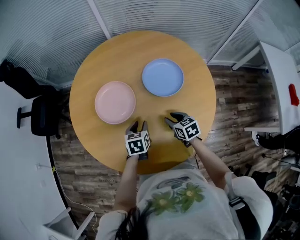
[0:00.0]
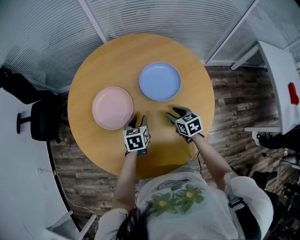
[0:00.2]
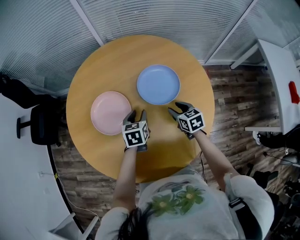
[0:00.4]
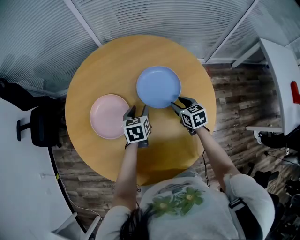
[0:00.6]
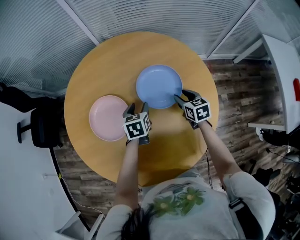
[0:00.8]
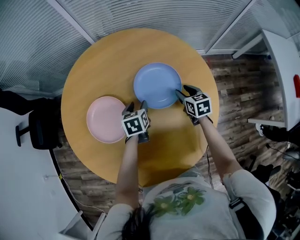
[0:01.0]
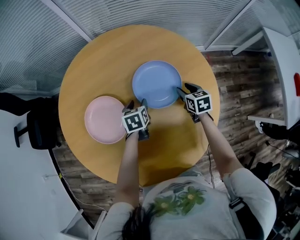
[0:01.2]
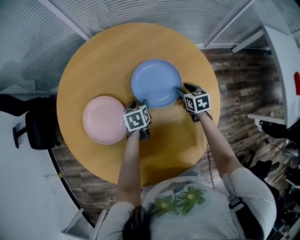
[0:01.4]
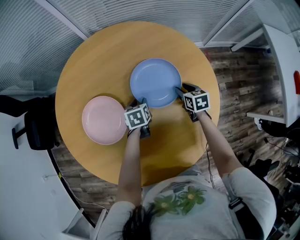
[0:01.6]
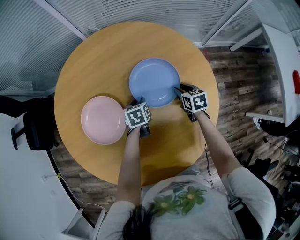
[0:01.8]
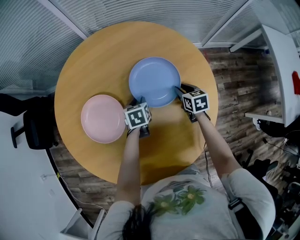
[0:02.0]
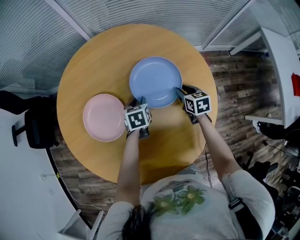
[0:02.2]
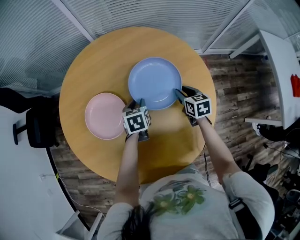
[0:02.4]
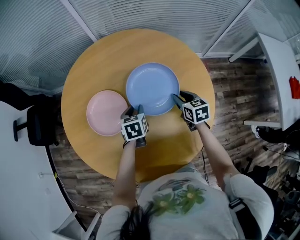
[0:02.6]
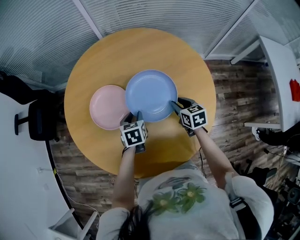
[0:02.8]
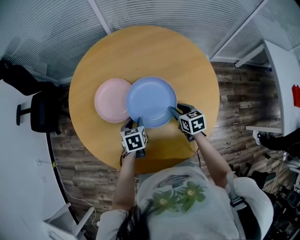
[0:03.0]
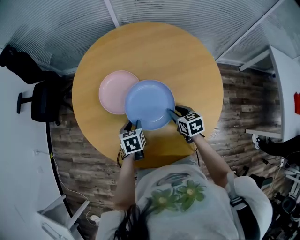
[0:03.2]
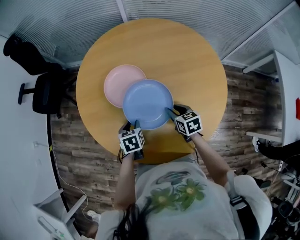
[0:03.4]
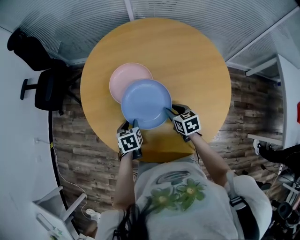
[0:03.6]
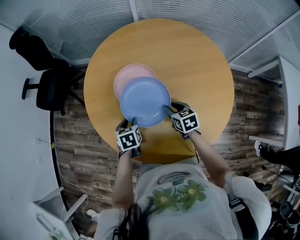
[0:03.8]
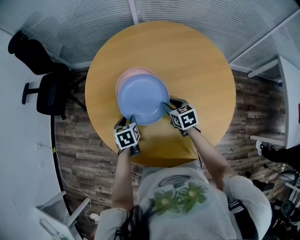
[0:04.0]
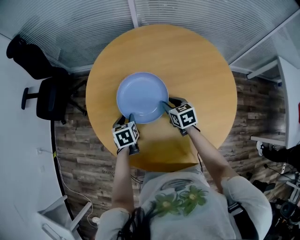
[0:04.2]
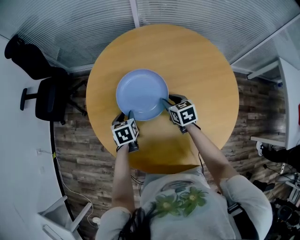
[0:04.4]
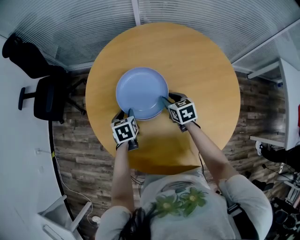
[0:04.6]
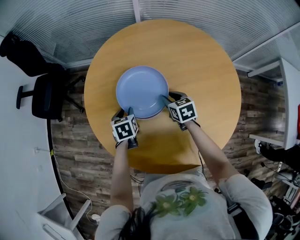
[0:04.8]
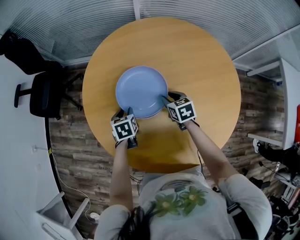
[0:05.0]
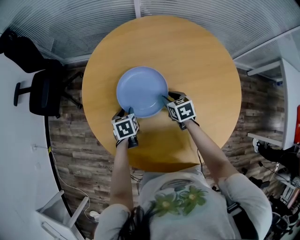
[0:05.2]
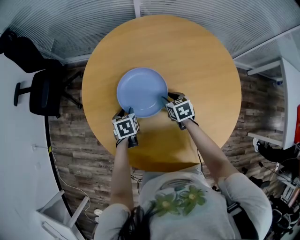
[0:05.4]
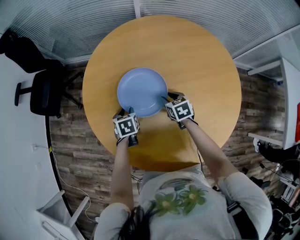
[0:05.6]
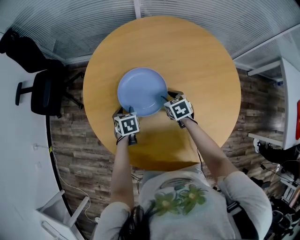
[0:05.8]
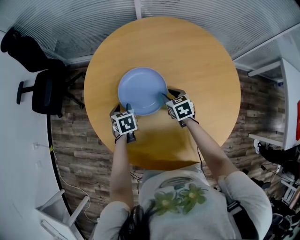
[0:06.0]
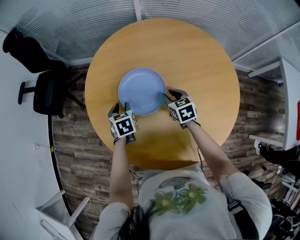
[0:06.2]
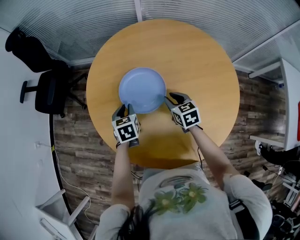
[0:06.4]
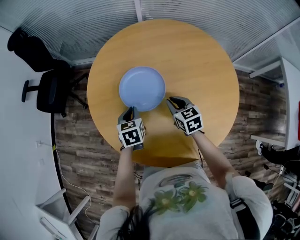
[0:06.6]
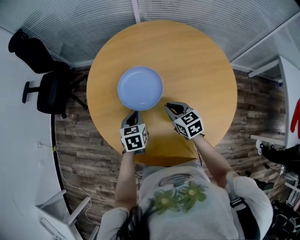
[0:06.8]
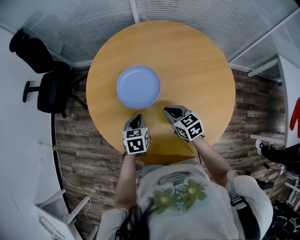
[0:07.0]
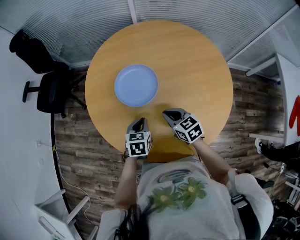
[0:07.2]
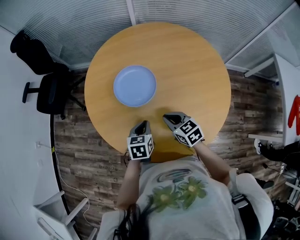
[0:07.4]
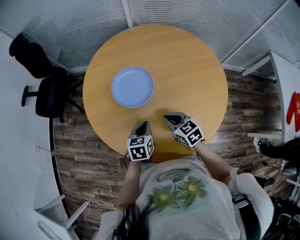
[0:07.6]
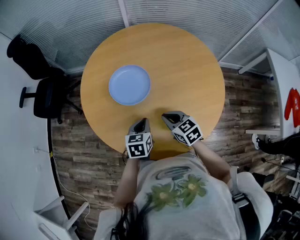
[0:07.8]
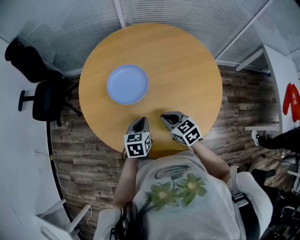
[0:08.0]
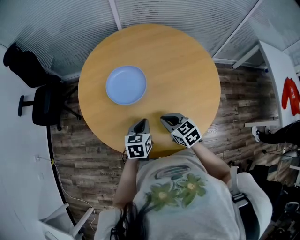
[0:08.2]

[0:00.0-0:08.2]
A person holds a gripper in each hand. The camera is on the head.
0:00.0 to 0:01.6: The left gripper shifts roughly 25 cm forward, downward and to the right. Meanwhile the right gripper travels forward, to the right and downward by approximately 30 cm.
0:01.6 to 0:03.2: The two grippers go about 30 cm backward, to the left and upward.
0:03.2 to 0:05.0: Both grippers travel together forward and to the left, approximately 20 cm.
0:05.0 to 0:06.6: The right gripper travels backward and upward by approximately 10 cm; the left gripper goes some 10 cm upward and backward, and closes its fingers.
0:06.6 to 0:08.2: The two grippers go approximately 20 cm backward. The left gripper swivels about 20 degrees.

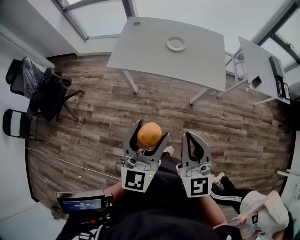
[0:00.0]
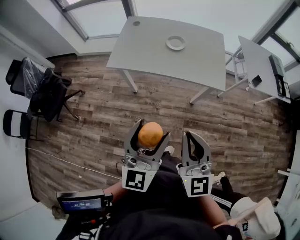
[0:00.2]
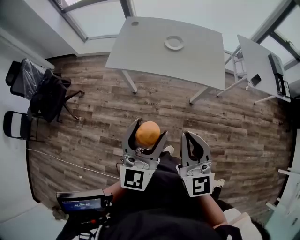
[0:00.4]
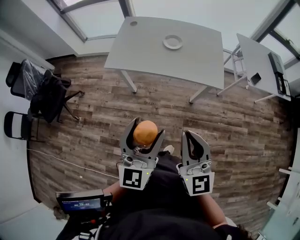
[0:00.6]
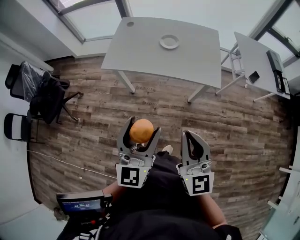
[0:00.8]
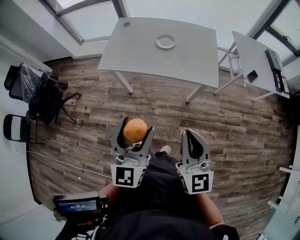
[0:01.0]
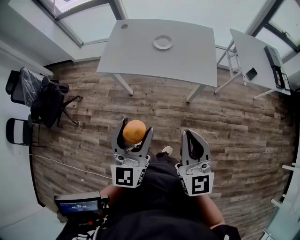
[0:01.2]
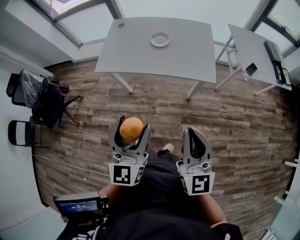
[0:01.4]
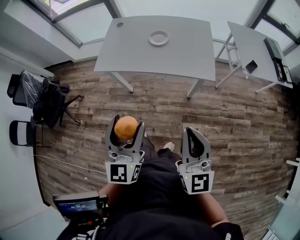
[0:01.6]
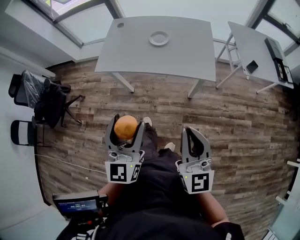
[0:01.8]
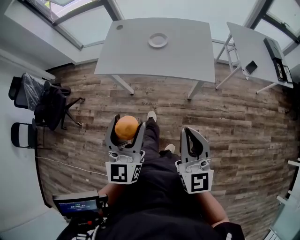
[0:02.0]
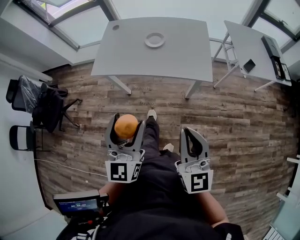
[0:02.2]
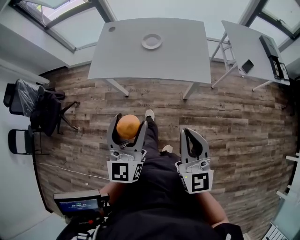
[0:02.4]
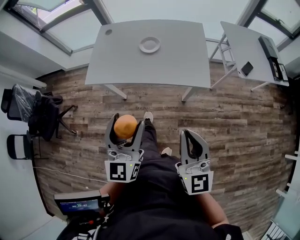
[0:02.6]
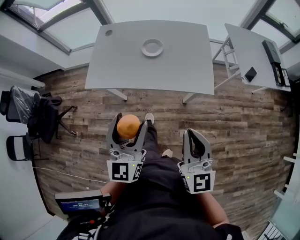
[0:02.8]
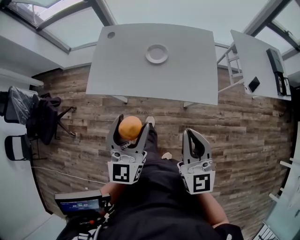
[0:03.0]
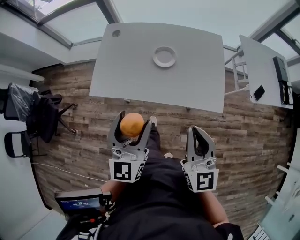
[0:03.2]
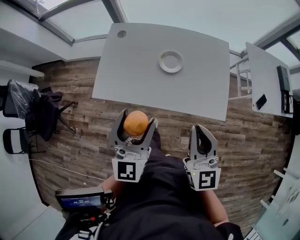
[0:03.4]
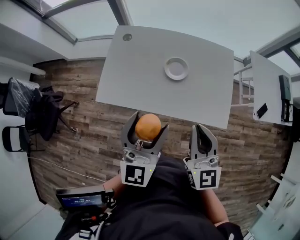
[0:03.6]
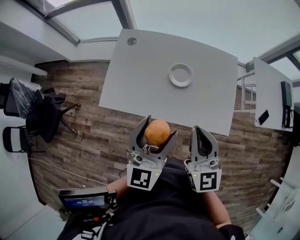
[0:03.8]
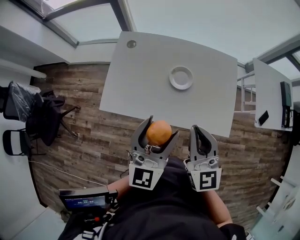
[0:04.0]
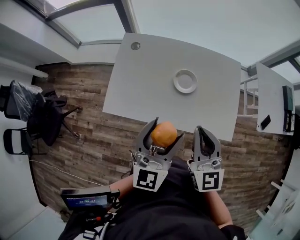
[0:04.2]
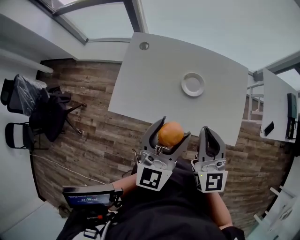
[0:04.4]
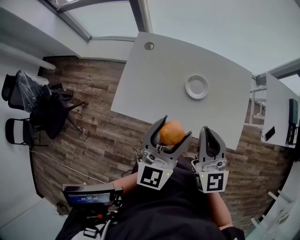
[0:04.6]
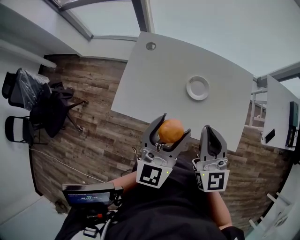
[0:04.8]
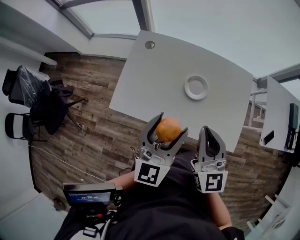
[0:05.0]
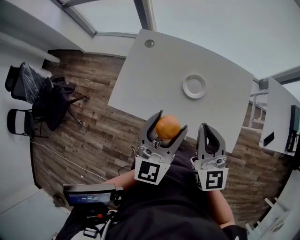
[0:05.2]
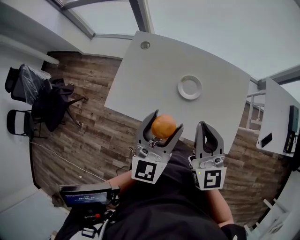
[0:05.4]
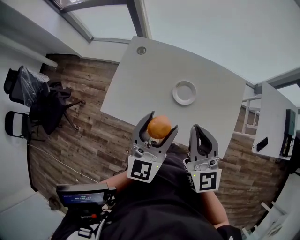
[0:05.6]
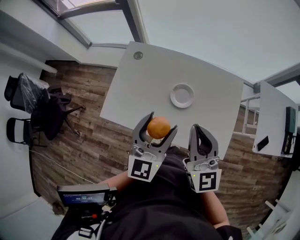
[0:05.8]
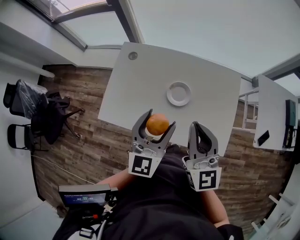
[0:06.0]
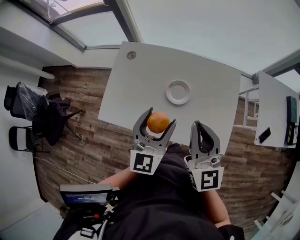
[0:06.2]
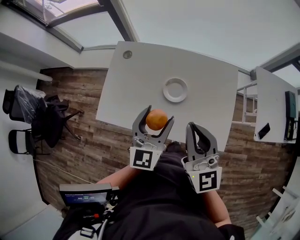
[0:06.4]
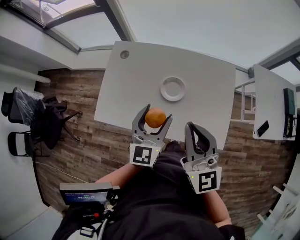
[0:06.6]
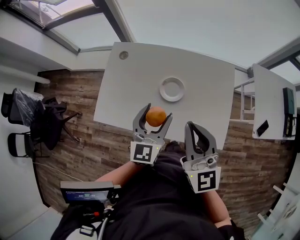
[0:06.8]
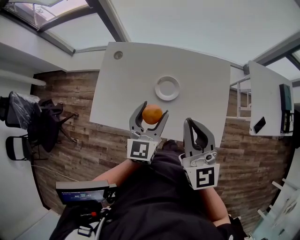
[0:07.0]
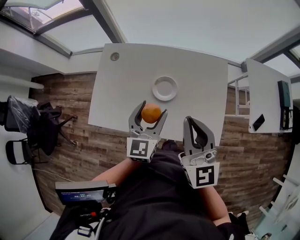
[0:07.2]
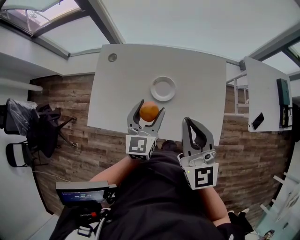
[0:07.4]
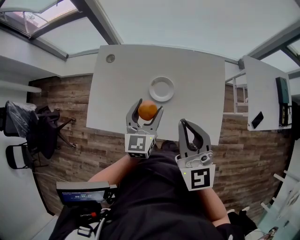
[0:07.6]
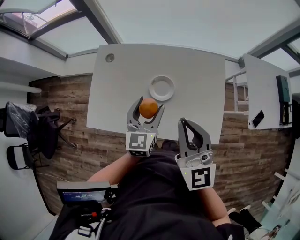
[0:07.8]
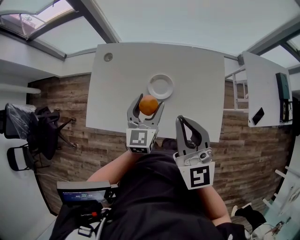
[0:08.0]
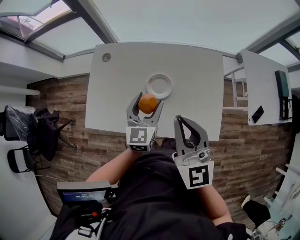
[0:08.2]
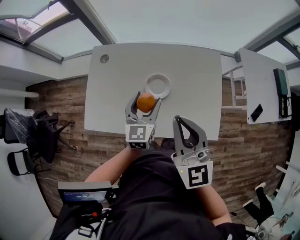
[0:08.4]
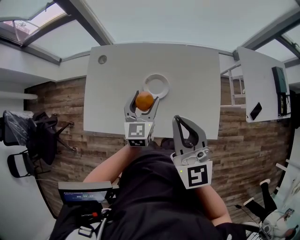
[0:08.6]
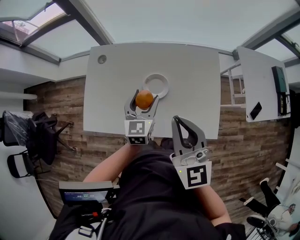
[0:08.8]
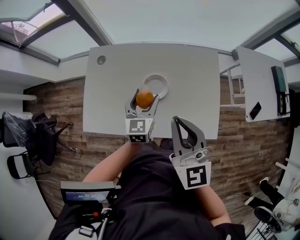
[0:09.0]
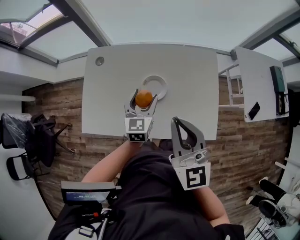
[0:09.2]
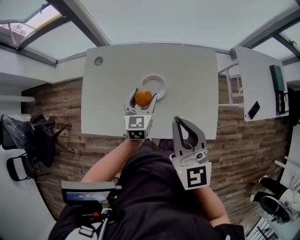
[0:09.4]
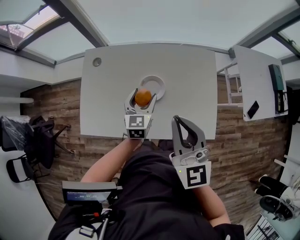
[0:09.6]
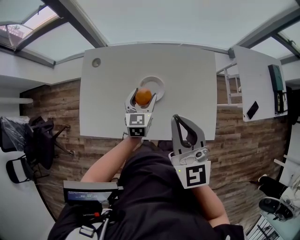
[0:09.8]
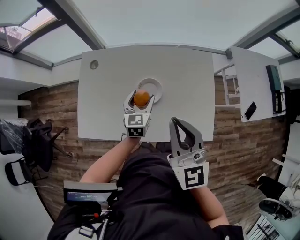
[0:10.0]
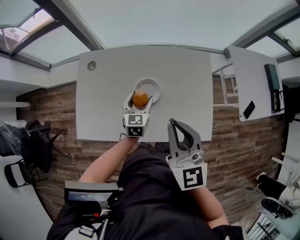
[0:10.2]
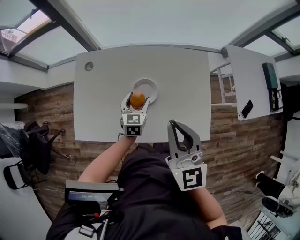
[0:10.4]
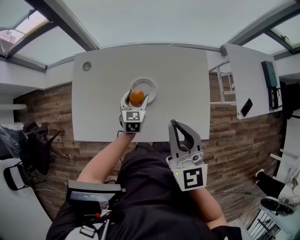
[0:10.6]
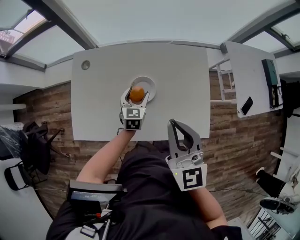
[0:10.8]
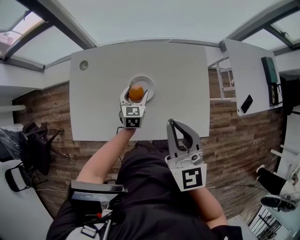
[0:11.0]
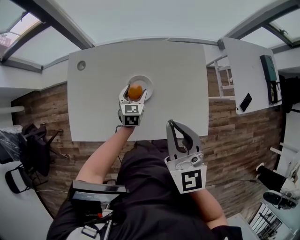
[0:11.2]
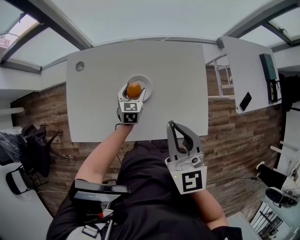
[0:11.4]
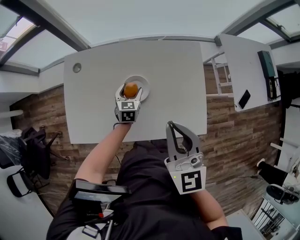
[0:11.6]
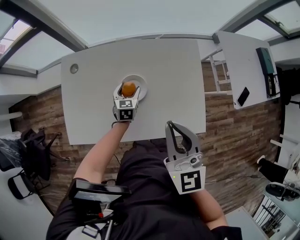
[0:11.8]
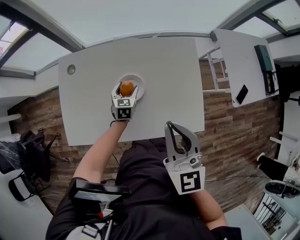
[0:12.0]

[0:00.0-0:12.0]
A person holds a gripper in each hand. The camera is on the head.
0:00.0 to 0:01.6: The right gripper shifts approximately 10 cm to the right.
0:01.6 to 0:03.0: Both grippers move forward, roughly 20 cm.
0:03.0 to 0:04.4: The left gripper travels forward by approximately 15 cm, while the right gripper goes roughly 25 cm forward and to the left.
0:04.4 to 0:06.0: Both grippers move forward and to the right, some 10 cm.
0:06.0 to 0:07.6: The left gripper travels downward by some 10 cm.
0:07.6 to 0:09.0: The left gripper changes place by about 5 cm.
0:09.0 to 0:10.4: The left gripper travels downward by roughly 10 cm.
0:10.4 to 0:12.0: The left gripper moves downward, approximately 10 cm.

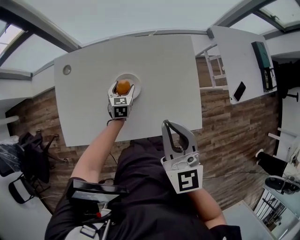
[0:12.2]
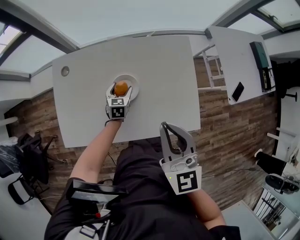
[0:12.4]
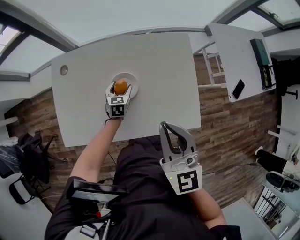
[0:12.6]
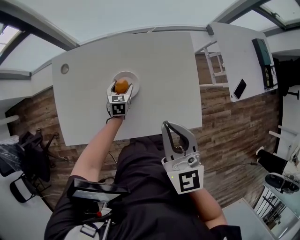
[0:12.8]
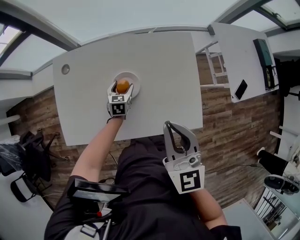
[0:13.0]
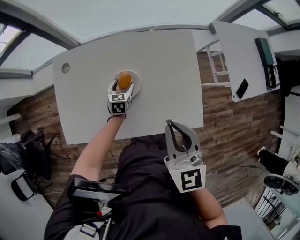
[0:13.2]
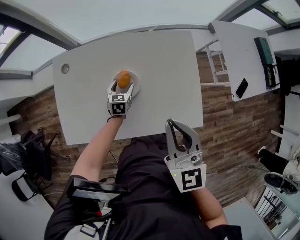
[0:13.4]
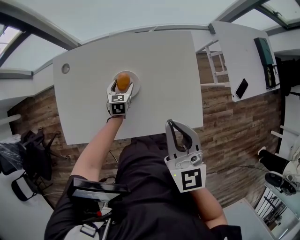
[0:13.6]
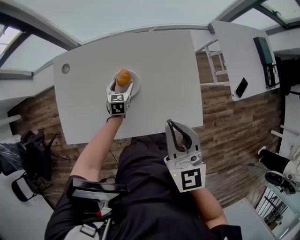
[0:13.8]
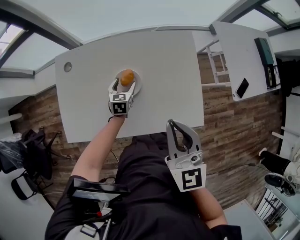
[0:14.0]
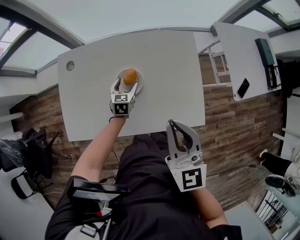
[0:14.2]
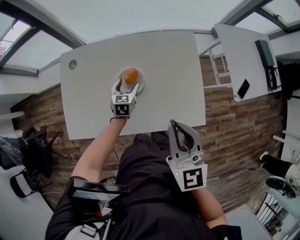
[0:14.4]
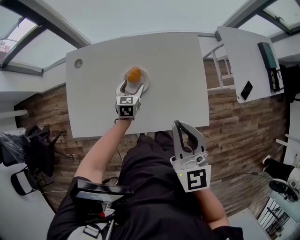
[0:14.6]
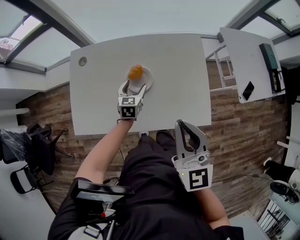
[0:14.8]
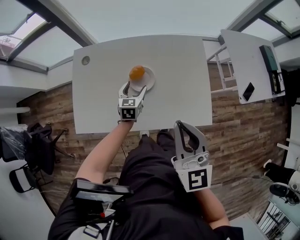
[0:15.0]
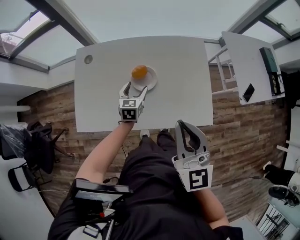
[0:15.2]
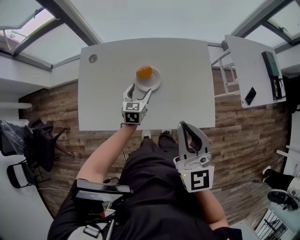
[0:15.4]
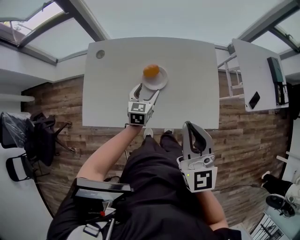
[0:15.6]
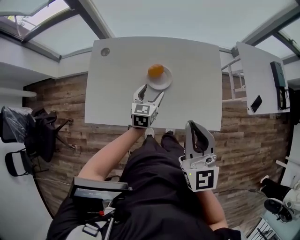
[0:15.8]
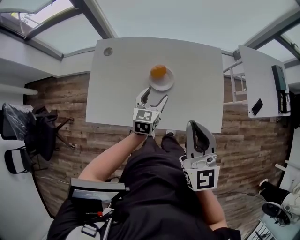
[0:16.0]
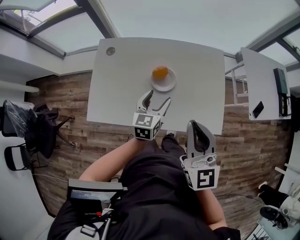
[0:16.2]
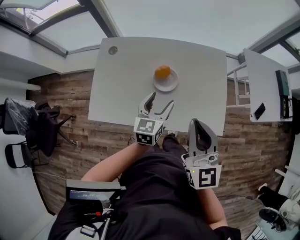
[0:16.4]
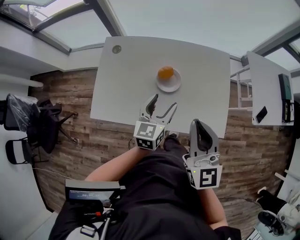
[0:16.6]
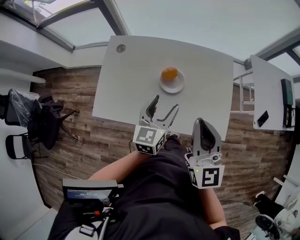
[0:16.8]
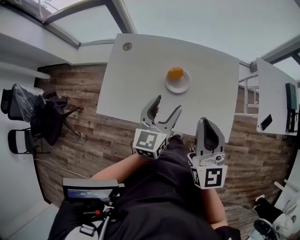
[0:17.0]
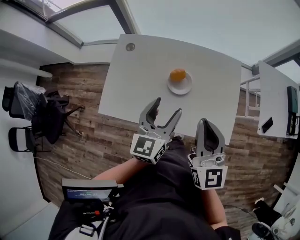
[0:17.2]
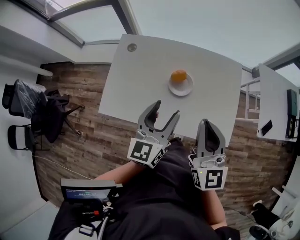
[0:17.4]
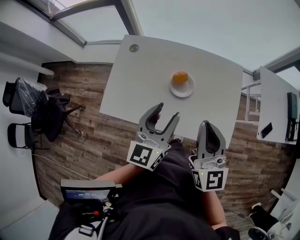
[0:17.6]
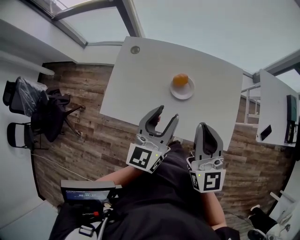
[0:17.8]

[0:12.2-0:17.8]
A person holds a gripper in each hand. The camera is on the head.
0:12.2 to 0:13.6: The grippers stay close to where they were, moving slightly.
0:13.6 to 0:15.0: The left gripper shifts about 10 cm upward and backward, while the right gripper travels backward by about 5 cm.
0:15.0 to 0:16.4: The left gripper is displaced upward and backward by about 15 cm.
0:16.4 to 0:17.8: The left gripper travels upward by roughly 15 cm.
